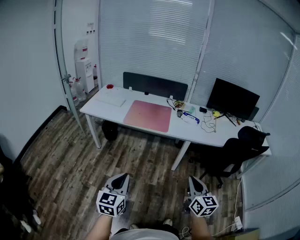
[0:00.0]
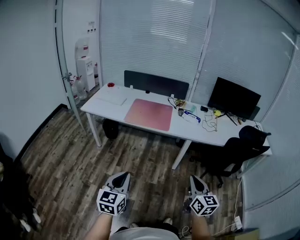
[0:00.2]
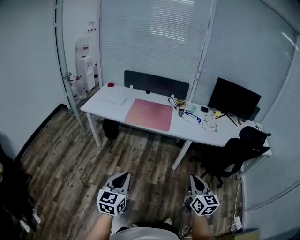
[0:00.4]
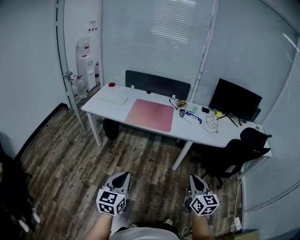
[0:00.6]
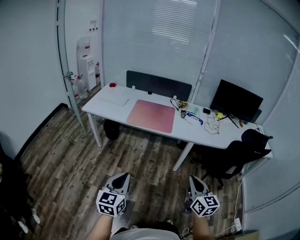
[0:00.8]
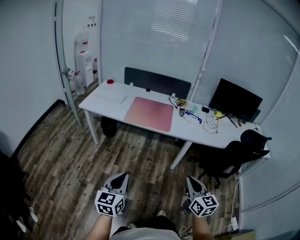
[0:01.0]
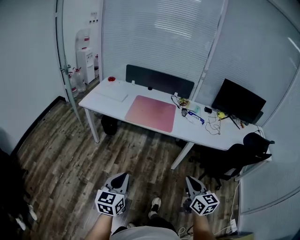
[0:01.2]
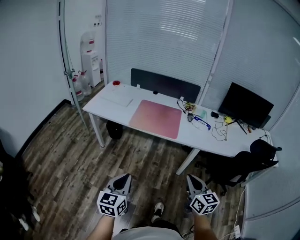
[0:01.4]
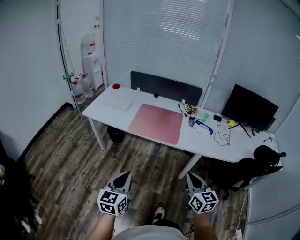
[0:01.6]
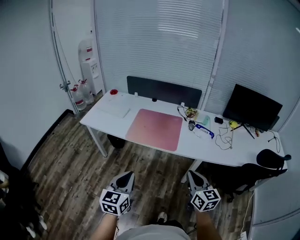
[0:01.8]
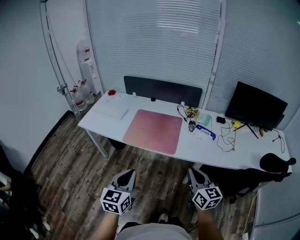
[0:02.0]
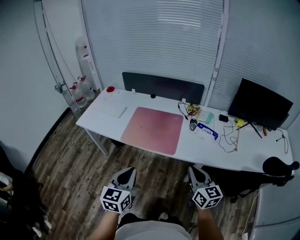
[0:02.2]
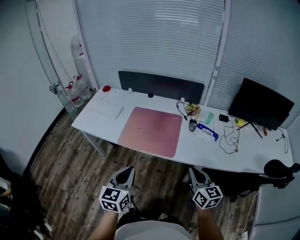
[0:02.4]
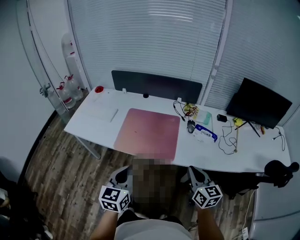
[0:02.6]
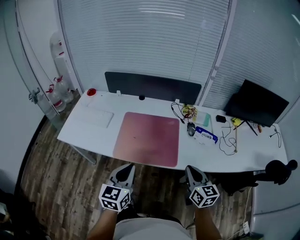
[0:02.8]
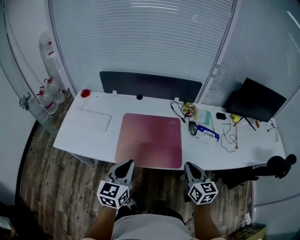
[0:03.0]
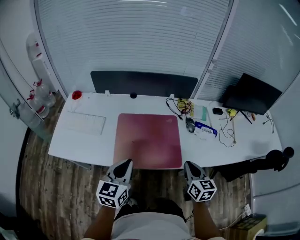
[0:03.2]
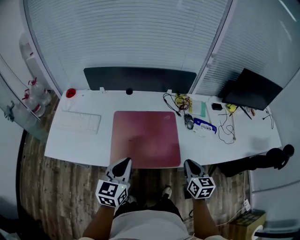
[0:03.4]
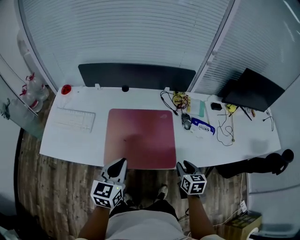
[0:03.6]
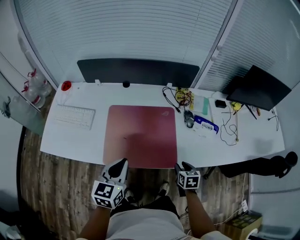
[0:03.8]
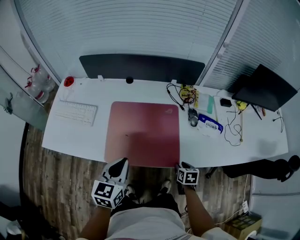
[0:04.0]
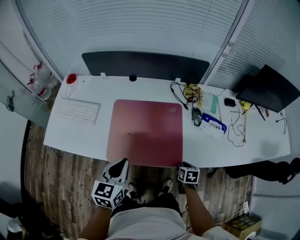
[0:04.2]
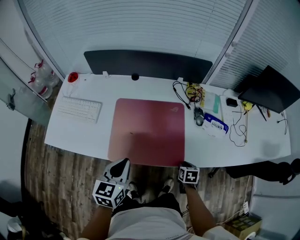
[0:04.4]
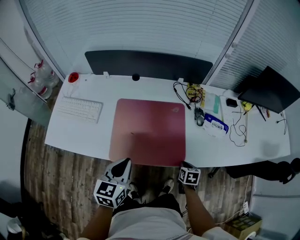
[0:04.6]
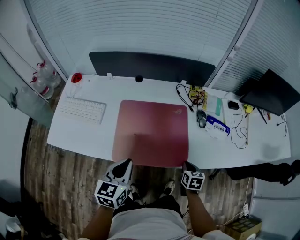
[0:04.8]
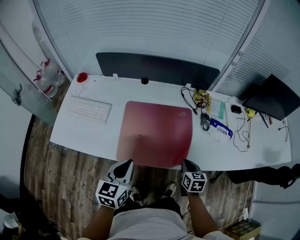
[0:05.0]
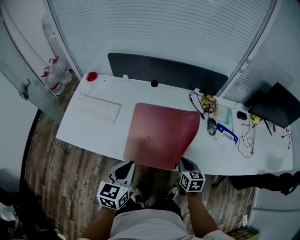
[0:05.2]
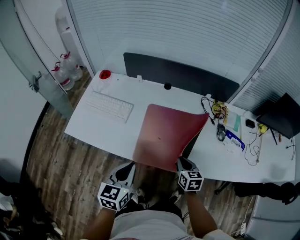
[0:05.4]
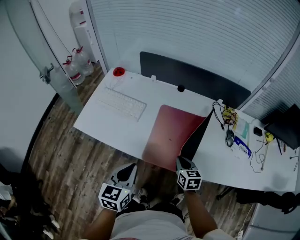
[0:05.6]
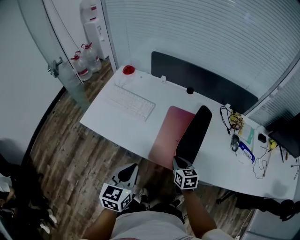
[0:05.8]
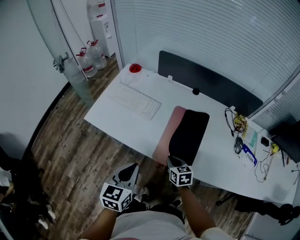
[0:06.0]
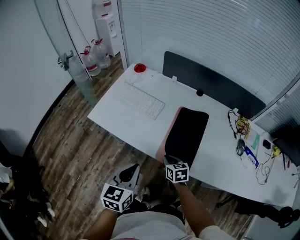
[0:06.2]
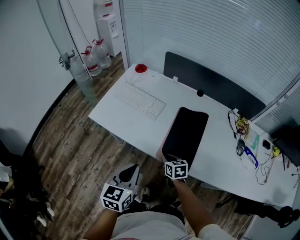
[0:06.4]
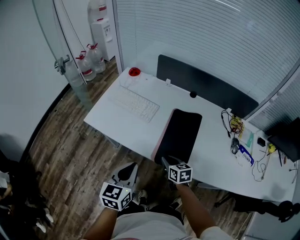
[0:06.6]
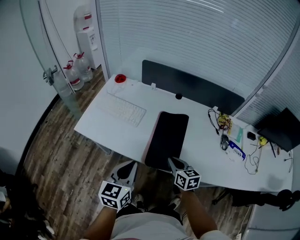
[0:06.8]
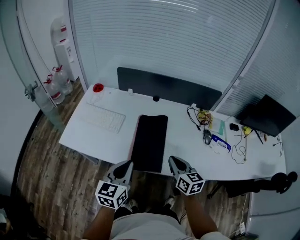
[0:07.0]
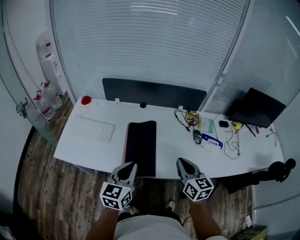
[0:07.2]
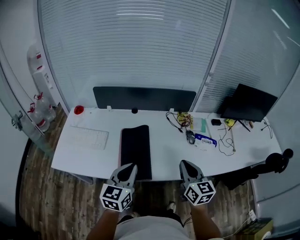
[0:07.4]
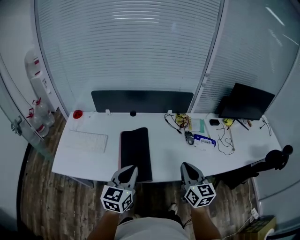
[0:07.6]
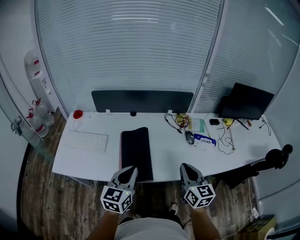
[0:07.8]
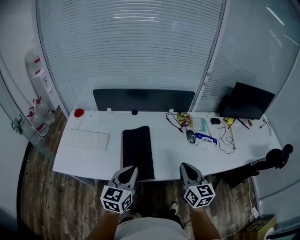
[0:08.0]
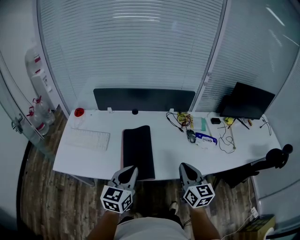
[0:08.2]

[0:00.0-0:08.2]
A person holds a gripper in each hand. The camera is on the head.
0:00.0 to 0:01.6: The two grippers go approximately 20 cm forward.
0:01.6 to 0:03.2: The grippers both shift forward by roughly 40 cm. The right gripper swivels approximately 20 degrees.
0:03.2 to 0:05.0: The left gripper moves downward, approximately 5 cm; the right gripper goes some 15 cm downward and forward, changes its angle by approximately 20 degrees, and opens, then closes once more.
0:05.0 to 0:06.6: The left gripper ends up roughly 20 cm from where it was. The right gripper moves roughly 30 cm, and swivels about 30 degrees.
0:06.6 to 0:08.2: The left gripper moves some 15 cm, and rotates about 30 degrees. The right gripper is displaced upward by about 25 cm, and changes its angle by roughly 50 degrees.

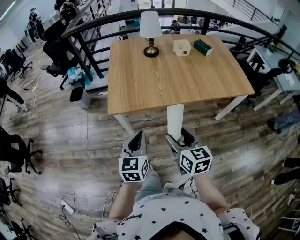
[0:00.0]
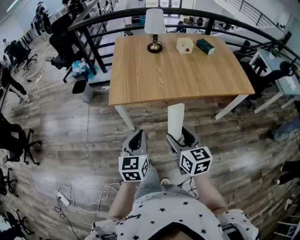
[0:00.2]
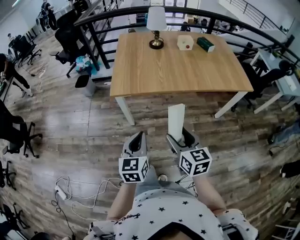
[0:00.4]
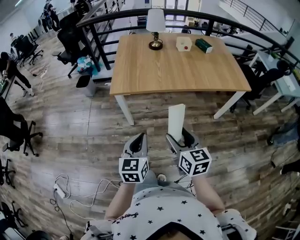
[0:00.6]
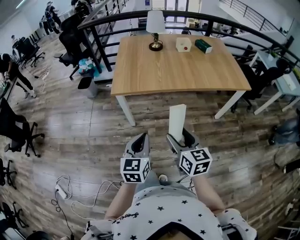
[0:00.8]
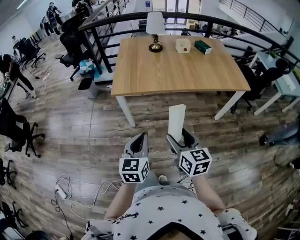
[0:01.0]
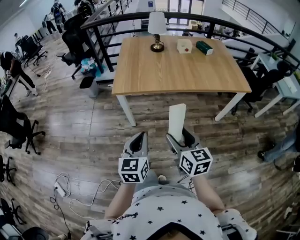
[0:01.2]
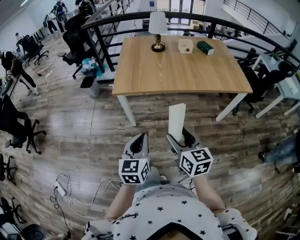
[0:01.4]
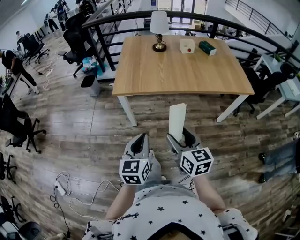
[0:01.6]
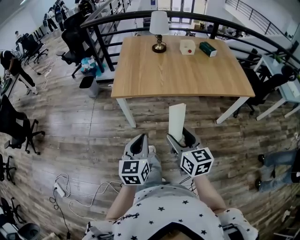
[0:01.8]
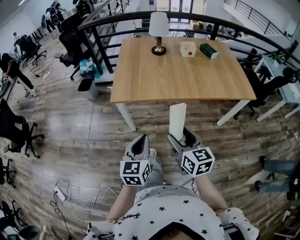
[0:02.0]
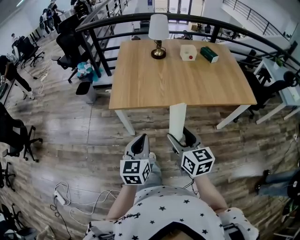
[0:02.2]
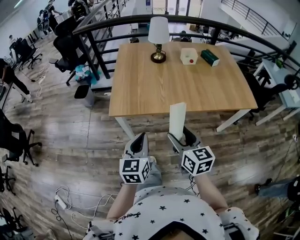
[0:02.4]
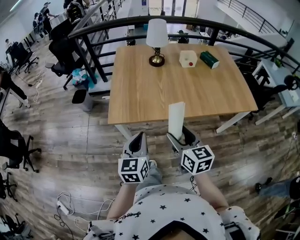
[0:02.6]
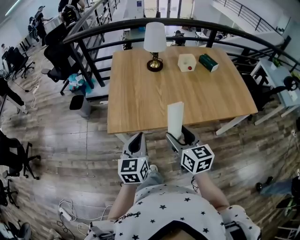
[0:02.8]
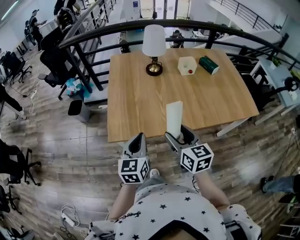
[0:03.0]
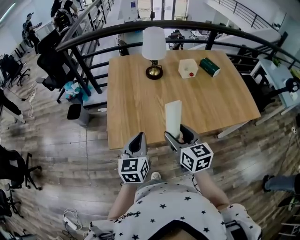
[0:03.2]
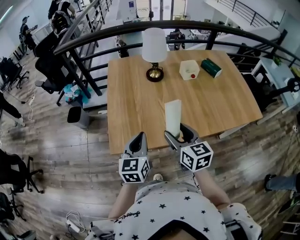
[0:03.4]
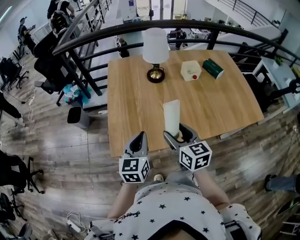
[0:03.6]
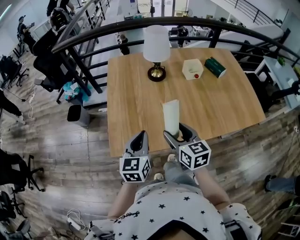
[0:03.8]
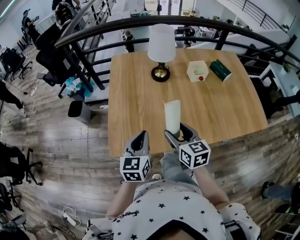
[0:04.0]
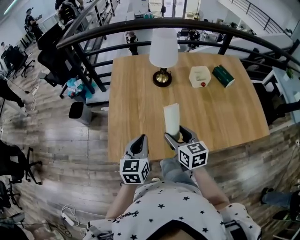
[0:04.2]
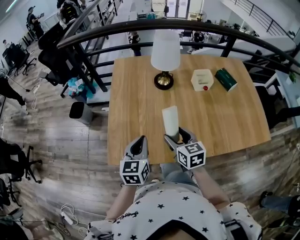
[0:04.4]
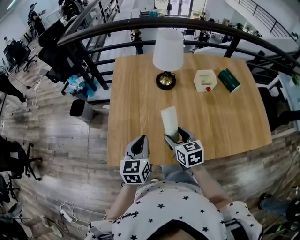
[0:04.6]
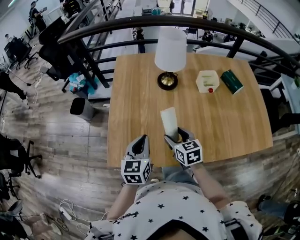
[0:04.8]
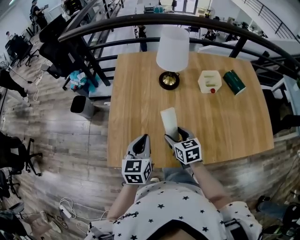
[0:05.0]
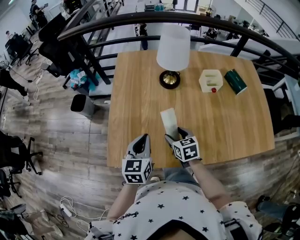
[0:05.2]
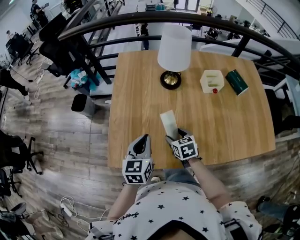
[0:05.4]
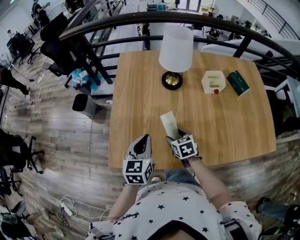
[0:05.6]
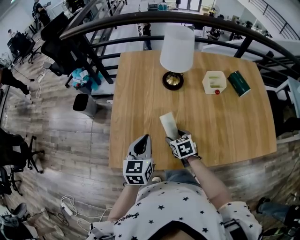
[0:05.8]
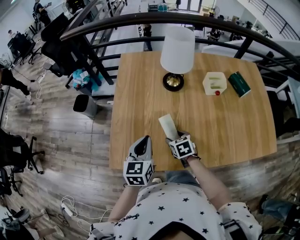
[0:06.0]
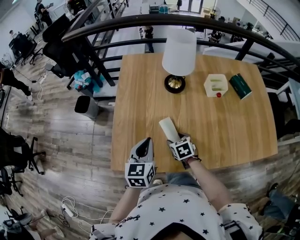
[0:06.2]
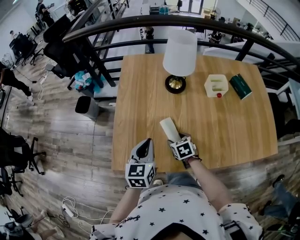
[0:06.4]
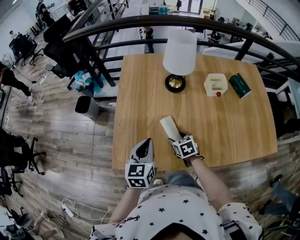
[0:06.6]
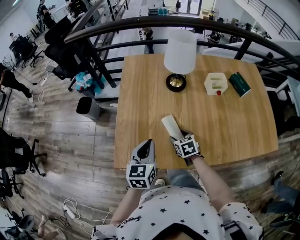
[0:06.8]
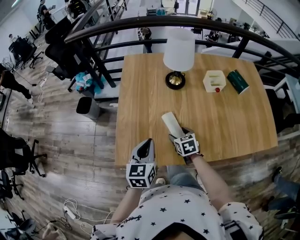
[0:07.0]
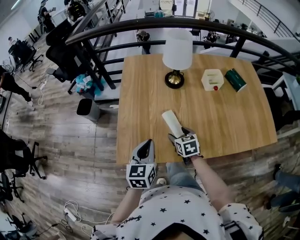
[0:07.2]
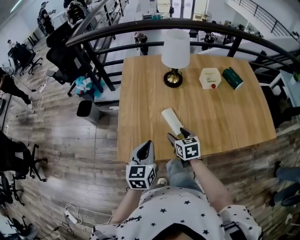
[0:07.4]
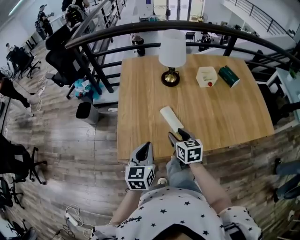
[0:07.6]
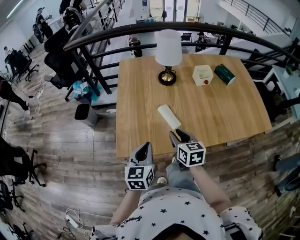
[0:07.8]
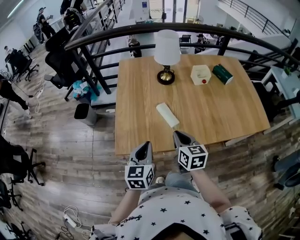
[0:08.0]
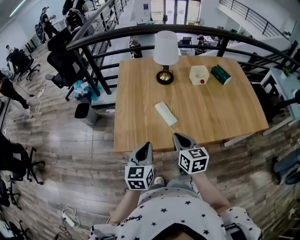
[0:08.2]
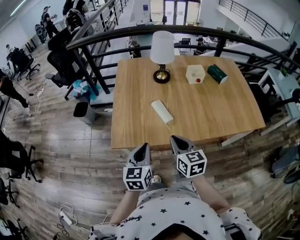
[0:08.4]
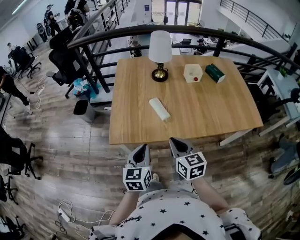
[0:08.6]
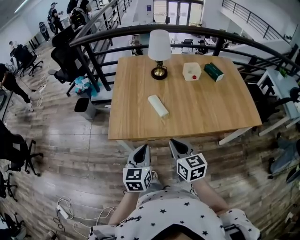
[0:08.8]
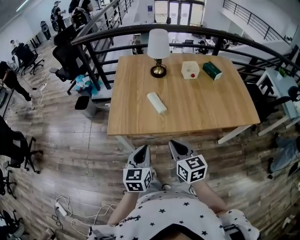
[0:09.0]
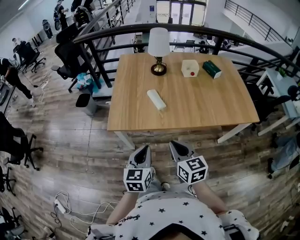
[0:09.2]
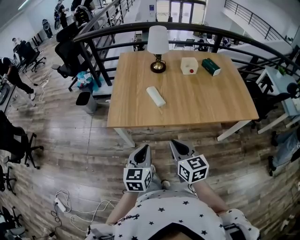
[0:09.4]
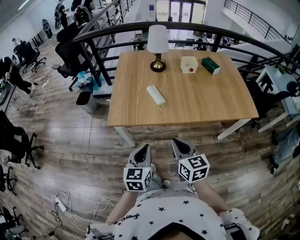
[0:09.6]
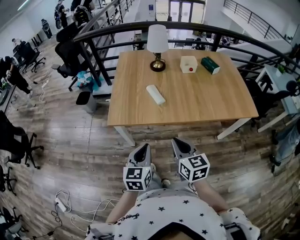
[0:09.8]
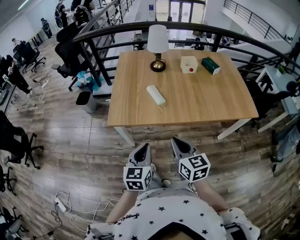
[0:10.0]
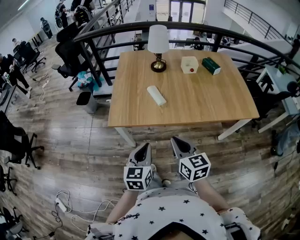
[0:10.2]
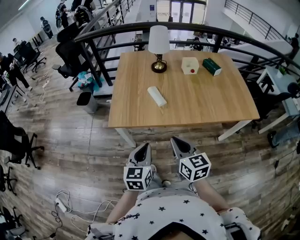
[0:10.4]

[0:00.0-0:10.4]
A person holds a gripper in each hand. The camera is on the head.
0:00.0 to 0:01.4: The two grippers go roughly 15 cm backward.
0:01.4 to 0:03.0: The grippers both shift forward by some 35 cm.
0:03.0 to 0:04.4: The right gripper is displaced forward and downward by about 20 cm, while the left gripper is displaced forward by about 15 cm.
0:04.4 to 0:06.0: The left gripper shifts by some 5 cm, while the right gripper shifts about 15 cm downward, and turns by roughly 30 degrees.
0:06.0 to 0:07.4: The left gripper moves backward, about 10 cm. Meanwhile the right gripper is displaced upward and backward by some 10 cm.
0:07.4 to 0:09.0: The left gripper is displaced backward by about 20 cm. The right gripper heads backward and upward, covering about 30 cm, and closes.
0:09.0 to 0:10.4: The grippers stay close to where they were, moving slightly.

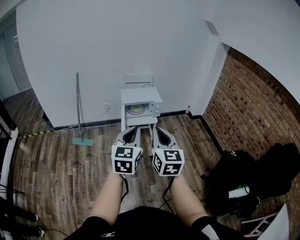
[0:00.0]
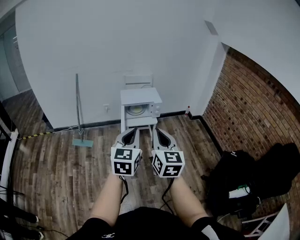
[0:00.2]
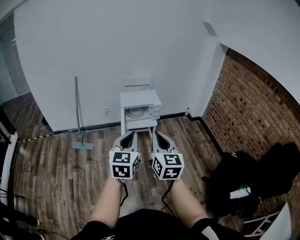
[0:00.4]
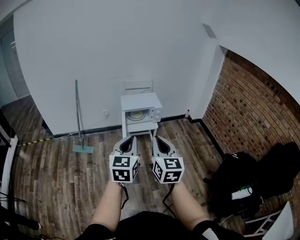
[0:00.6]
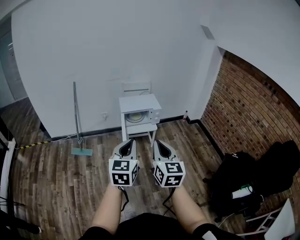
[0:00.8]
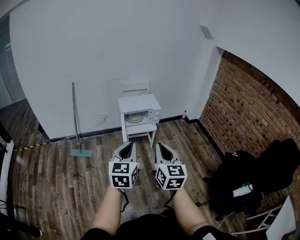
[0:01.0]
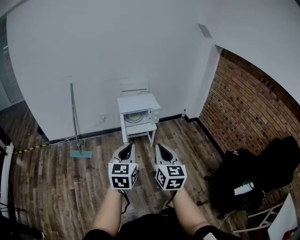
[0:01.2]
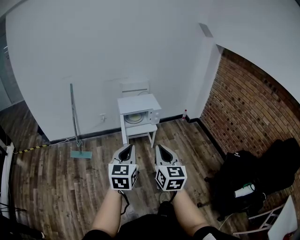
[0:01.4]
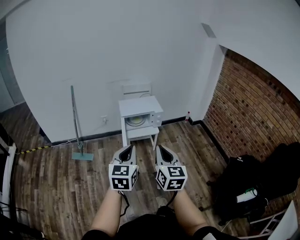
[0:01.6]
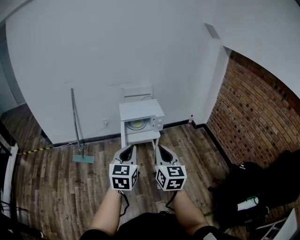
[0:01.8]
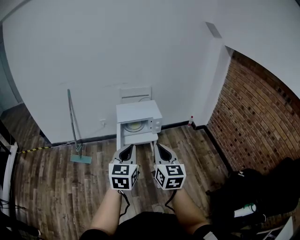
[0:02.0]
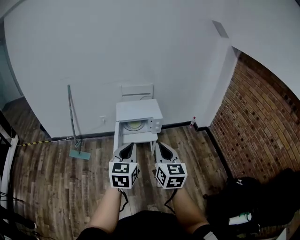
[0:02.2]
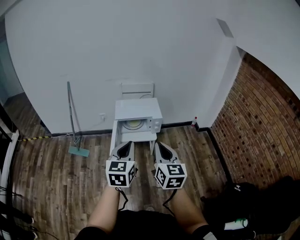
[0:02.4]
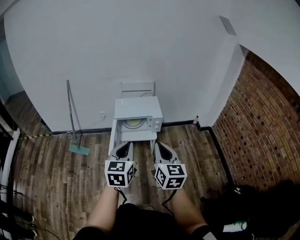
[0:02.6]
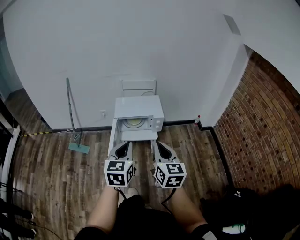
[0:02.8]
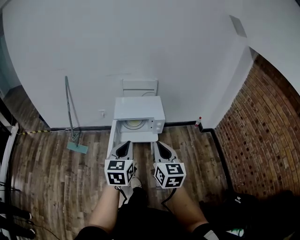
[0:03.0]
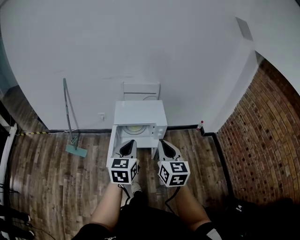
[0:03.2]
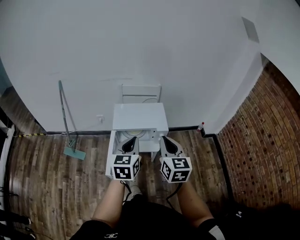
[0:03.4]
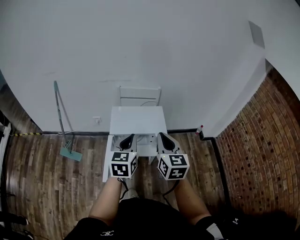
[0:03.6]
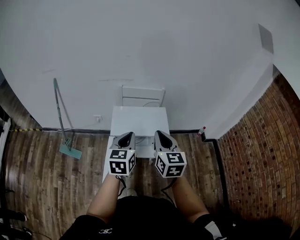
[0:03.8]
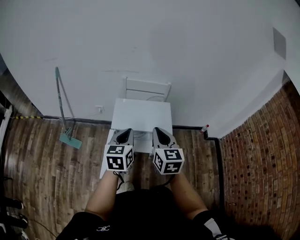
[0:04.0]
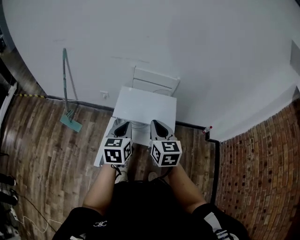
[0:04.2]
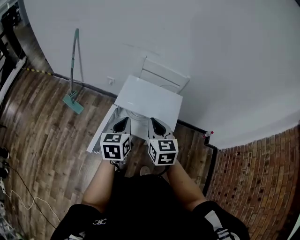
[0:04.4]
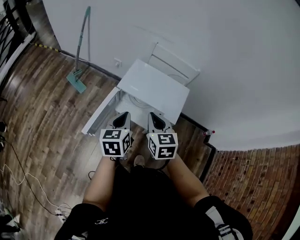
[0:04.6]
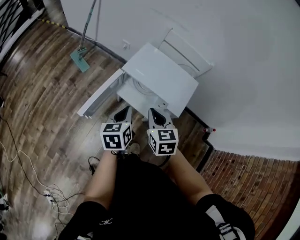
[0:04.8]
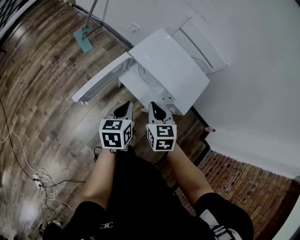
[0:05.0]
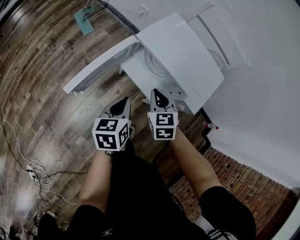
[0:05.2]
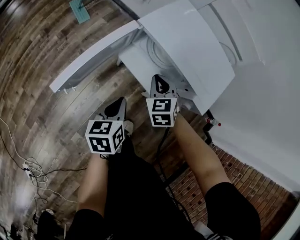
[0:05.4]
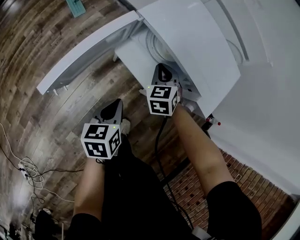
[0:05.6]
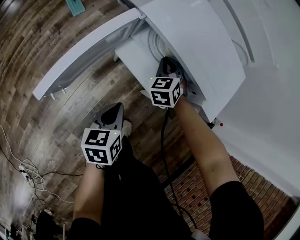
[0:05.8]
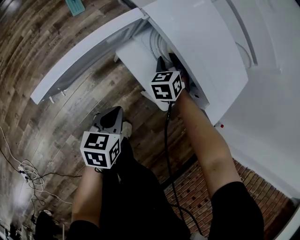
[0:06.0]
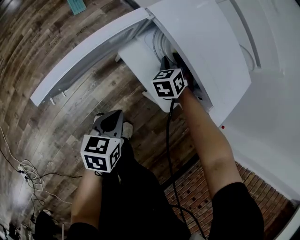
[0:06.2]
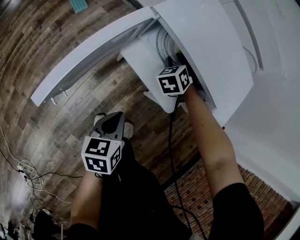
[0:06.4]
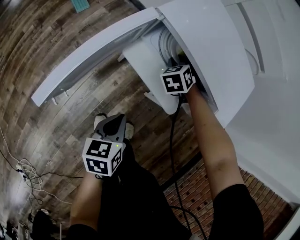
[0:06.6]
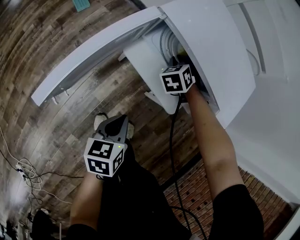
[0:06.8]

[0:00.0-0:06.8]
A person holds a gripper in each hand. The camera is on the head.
0:00.0 to 0:01.4: The right gripper ends up some 5 cm from where it was. Meanwhile the left gripper travels to the left by approximately 5 cm.
0:01.4 to 0:02.8: The grippers both shift forward and to the right by some 25 cm.
0:02.8 to 0:04.0: Both grippers move forward, about 35 cm.
0:04.0 to 0:05.4: Both grippers move downward, roughly 40 cm. The right gripper turns by roughly 60 degrees. The left gripper swivels some 50 degrees.
0:05.4 to 0:06.8: The right gripper shifts roughly 15 cm downward and forward, and turns by approximately 30 degrees. The left gripper is displaced downward by some 10 cm.
